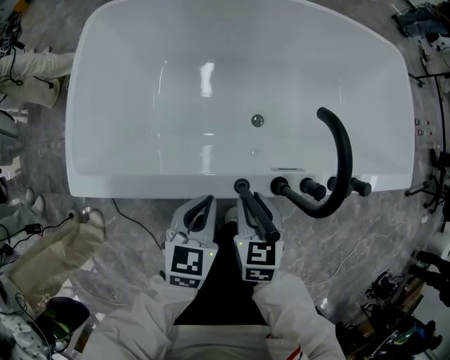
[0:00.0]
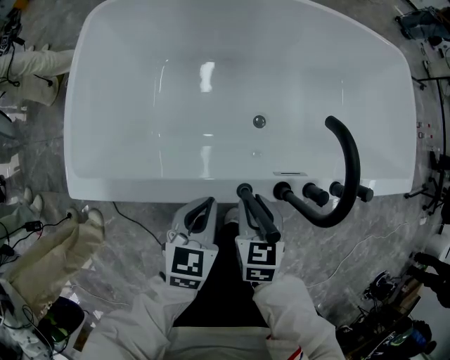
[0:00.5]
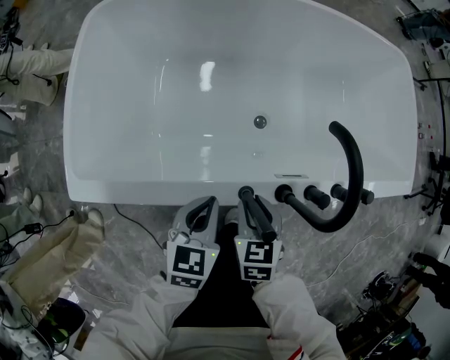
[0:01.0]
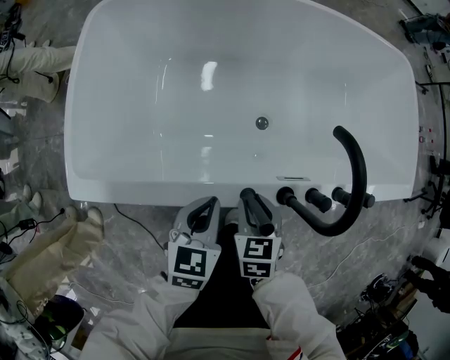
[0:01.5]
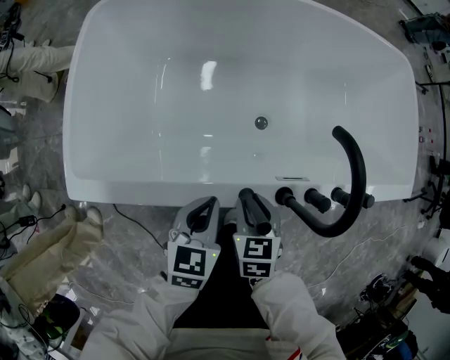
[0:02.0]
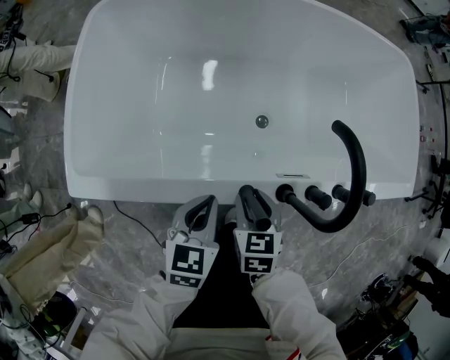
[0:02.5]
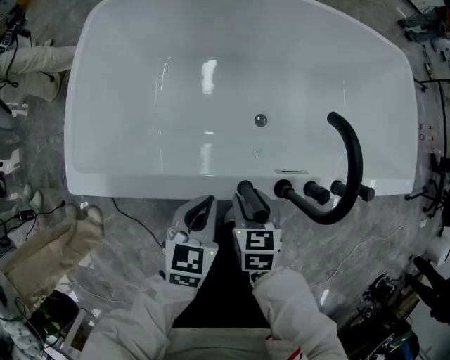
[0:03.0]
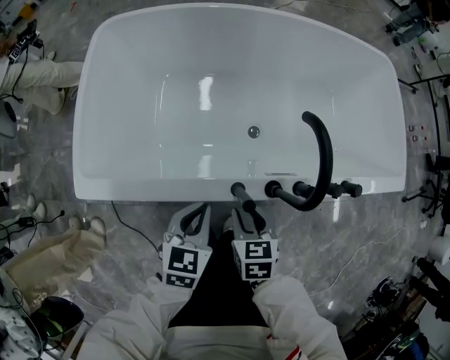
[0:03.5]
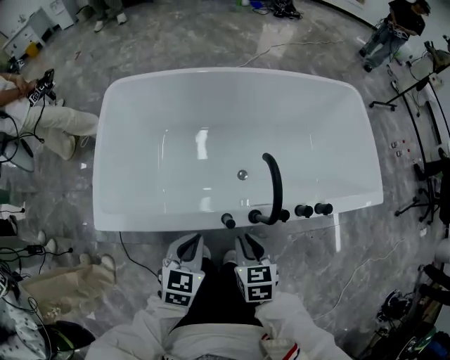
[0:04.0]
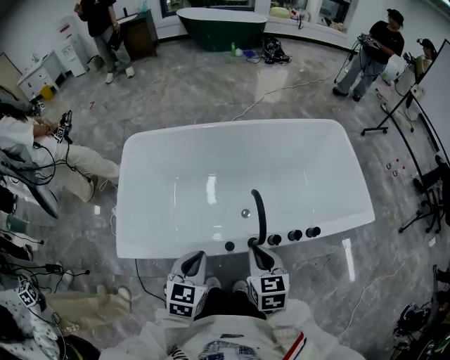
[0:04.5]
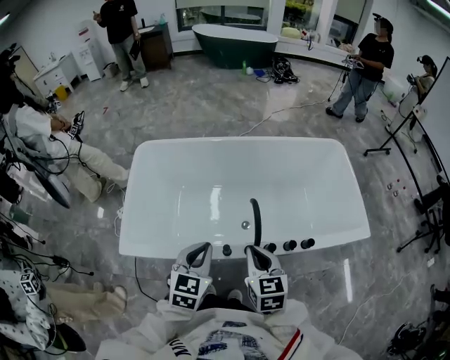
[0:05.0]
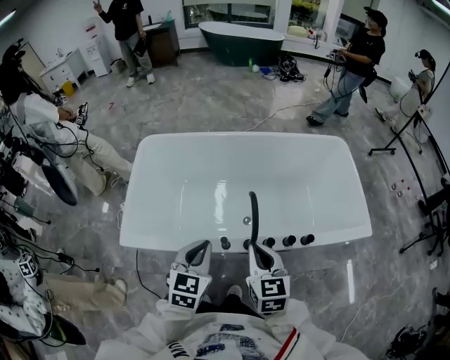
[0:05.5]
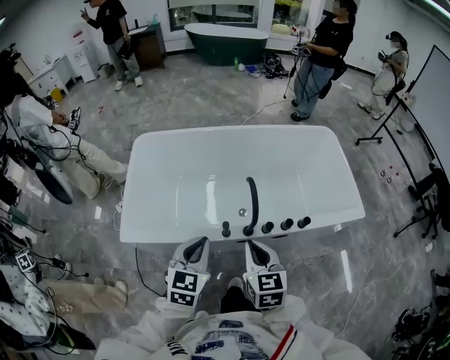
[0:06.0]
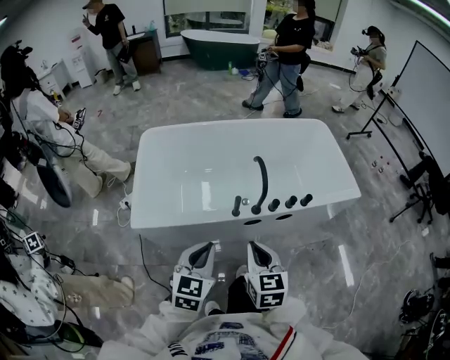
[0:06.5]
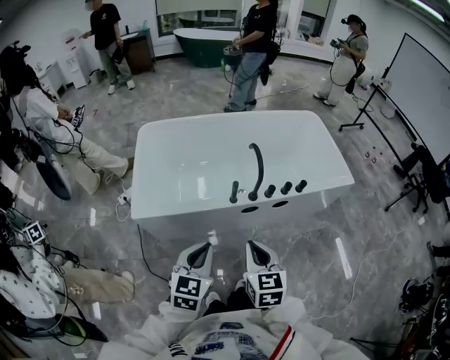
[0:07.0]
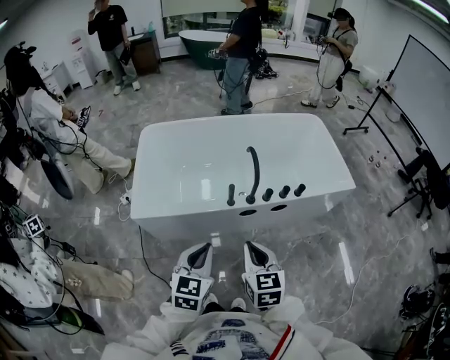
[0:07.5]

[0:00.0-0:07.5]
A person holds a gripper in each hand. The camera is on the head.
0:00.0 to 0:02.0: The grippers make only small movements.
0:02.0 to 0:04.0: Both grippers travel together upward, some 10 cm.
0:04.0 to 0:05.5: The two grippers go about 20 cm upward. The right gripper turns by about 20 degrees.
0:05.5 to 0:07.5: Both grippers move backward, approximately 25 cm.

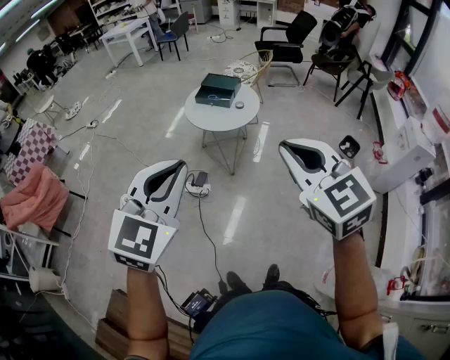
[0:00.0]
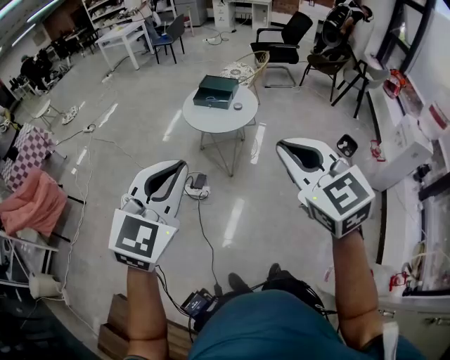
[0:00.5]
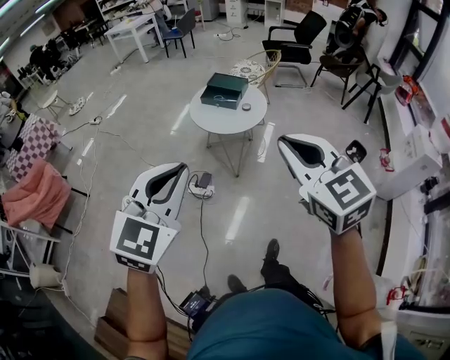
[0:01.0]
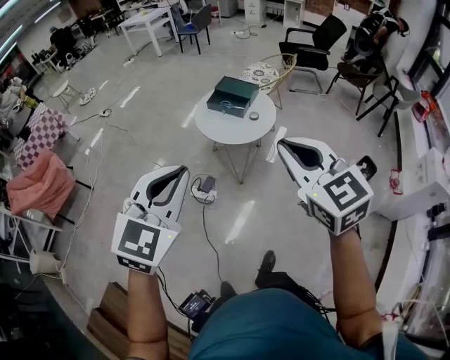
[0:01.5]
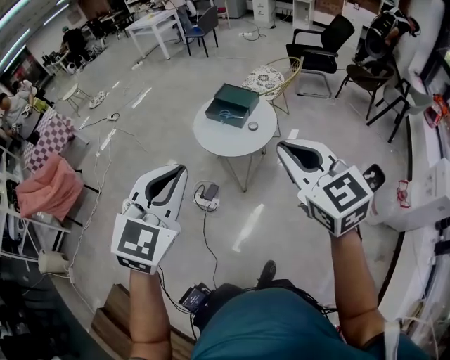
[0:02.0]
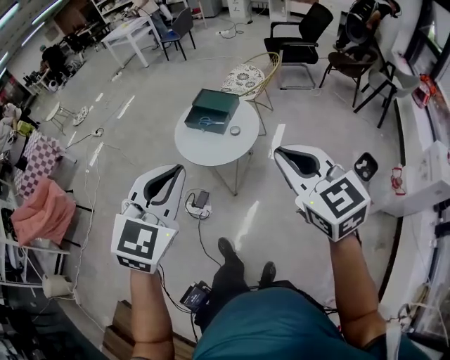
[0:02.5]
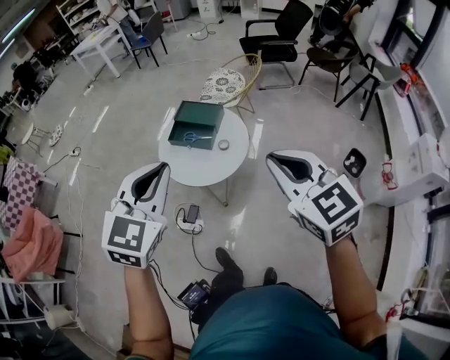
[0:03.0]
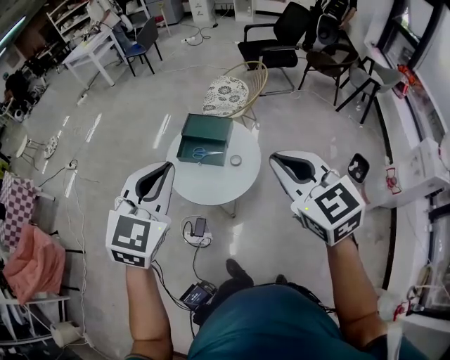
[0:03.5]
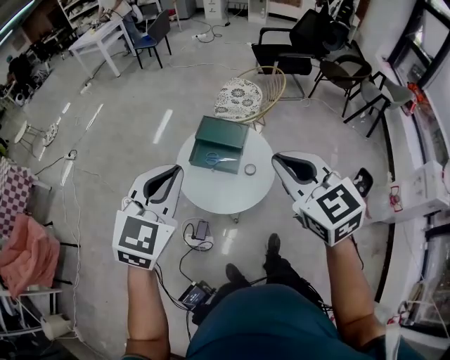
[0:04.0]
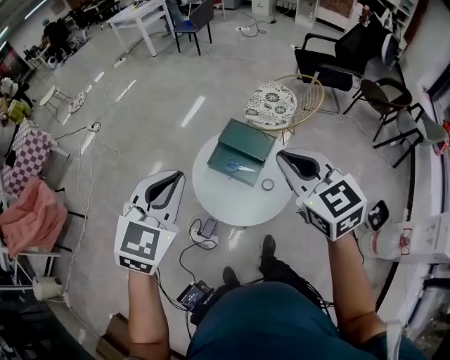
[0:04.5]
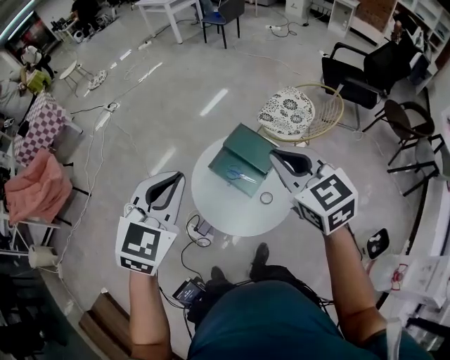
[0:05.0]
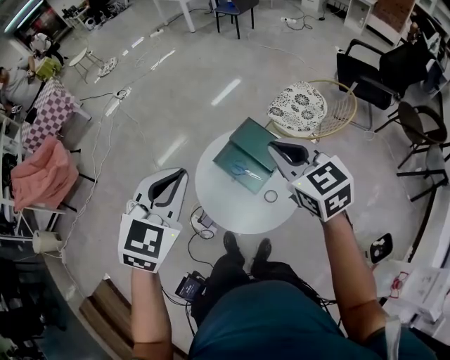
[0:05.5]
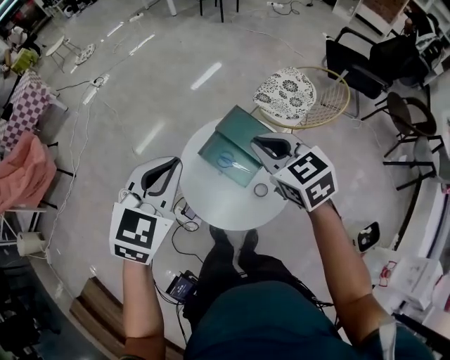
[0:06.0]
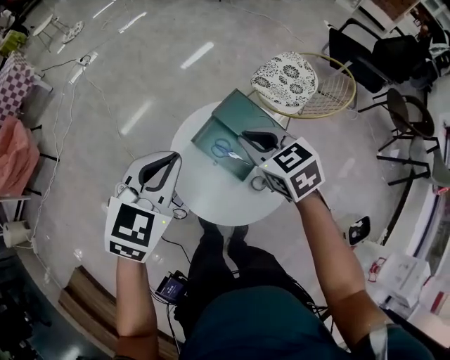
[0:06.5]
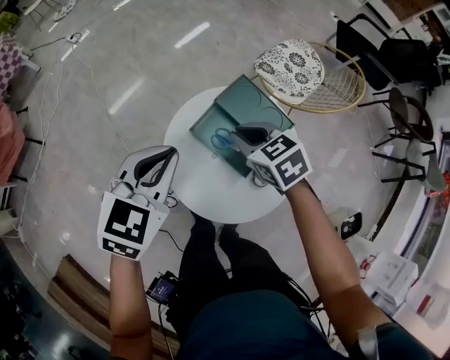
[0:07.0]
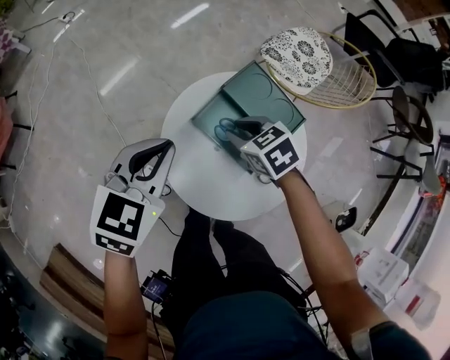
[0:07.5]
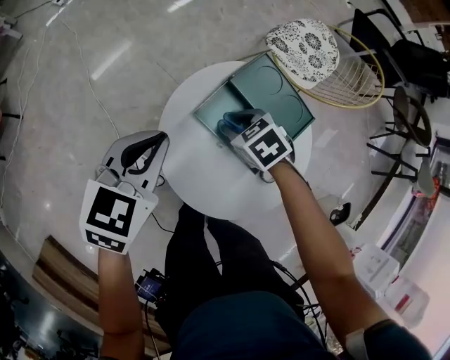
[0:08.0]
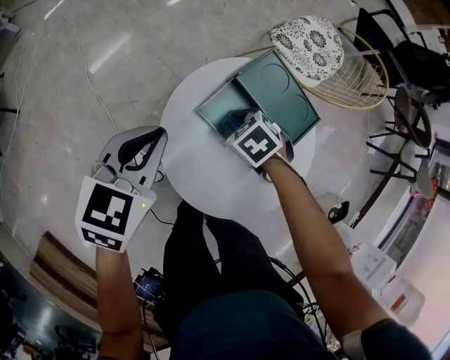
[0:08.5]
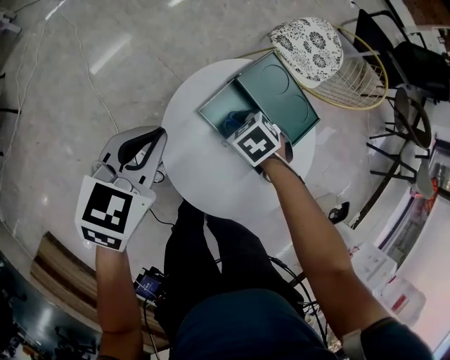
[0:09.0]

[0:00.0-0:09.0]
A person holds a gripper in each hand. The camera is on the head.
0:00.0 to 0:02.0: The two grippers go approximately 30 cm forward and to the right.
0:02.0 to 0:04.5: Both grippers are carried forward, approximately 50 cm.
0:04.5 to 0:07.0: Both grippers move downward and forward, approximately 40 cm. The left gripper swivels about 20 degrees. Meanwhile the right gripper swivels roughly 40 degrees.
0:07.0 to 0:09.0: The left gripper heads downward, covering approximately 15 cm. Meanwhile the right gripper is displaced downward by roughly 25 cm, and turns by some 30 degrees.

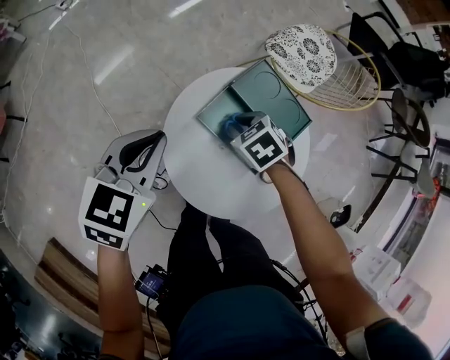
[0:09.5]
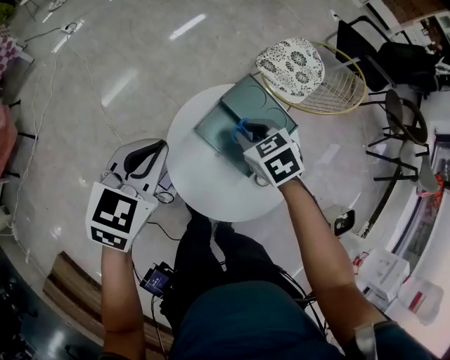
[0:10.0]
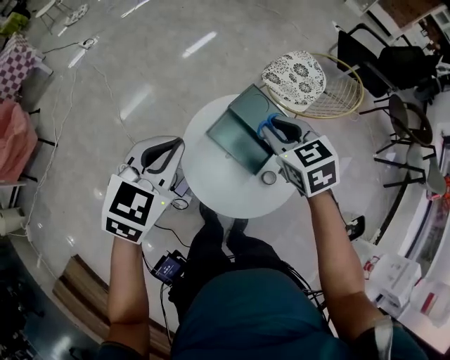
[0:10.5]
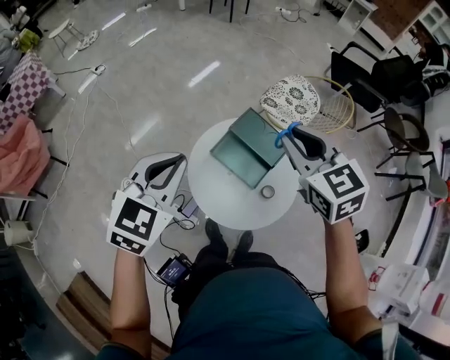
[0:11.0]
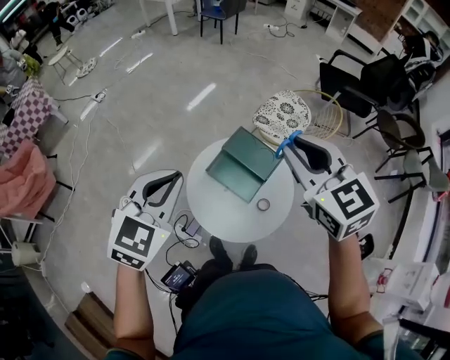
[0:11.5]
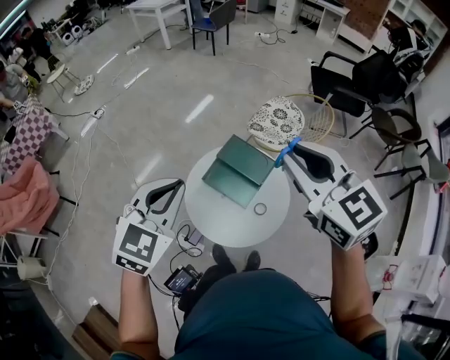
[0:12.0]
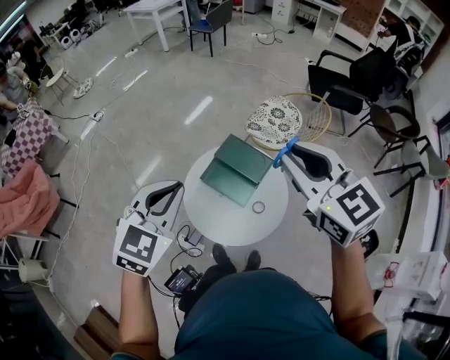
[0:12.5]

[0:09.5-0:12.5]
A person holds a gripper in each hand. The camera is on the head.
0:09.5 to 0:11.0: The left gripper is displaced upward and backward by roughly 30 cm. Meanwhile the right gripper is displaced upward by roughly 40 cm, and tips its fingers upward by some 40 degrees.
0:11.0 to 0:12.5: The right gripper shifts roughly 15 cm upward, backward and to the right, while the left gripper moves to the right, upward and backward, about 10 cm.

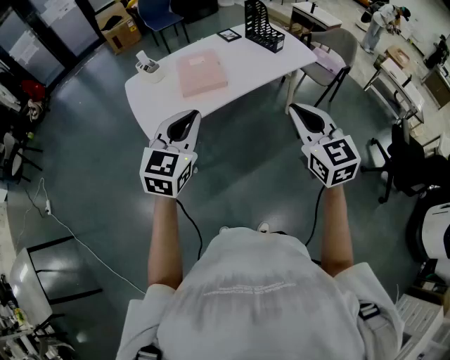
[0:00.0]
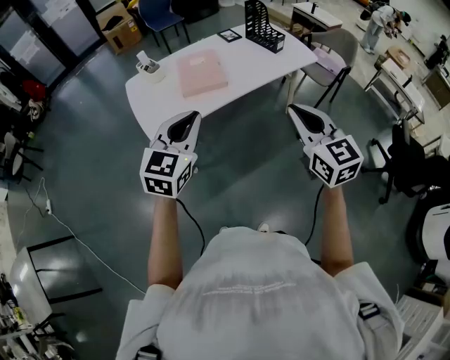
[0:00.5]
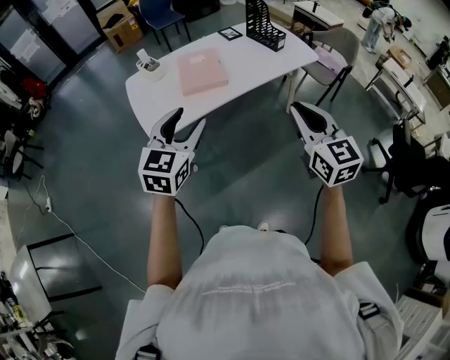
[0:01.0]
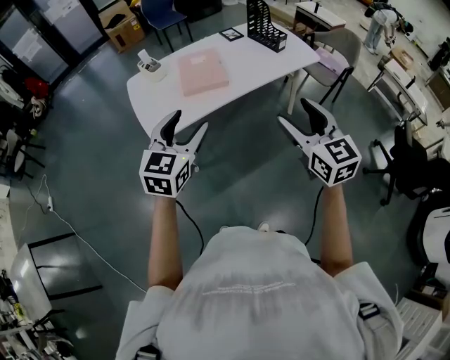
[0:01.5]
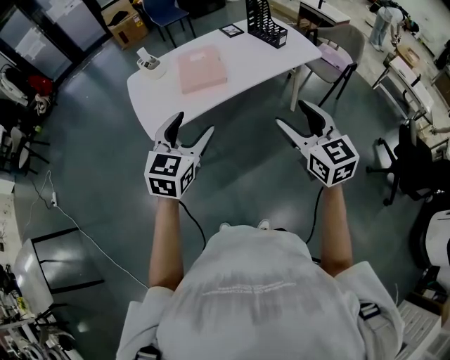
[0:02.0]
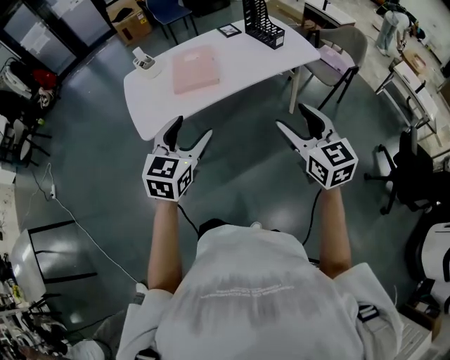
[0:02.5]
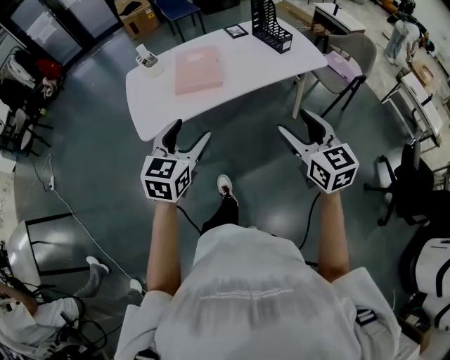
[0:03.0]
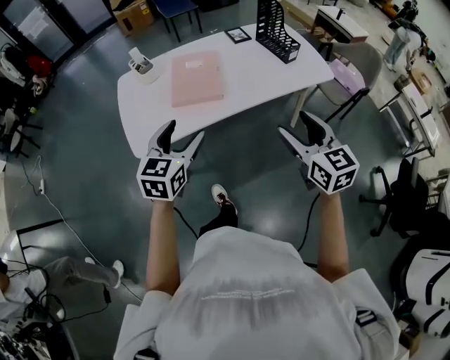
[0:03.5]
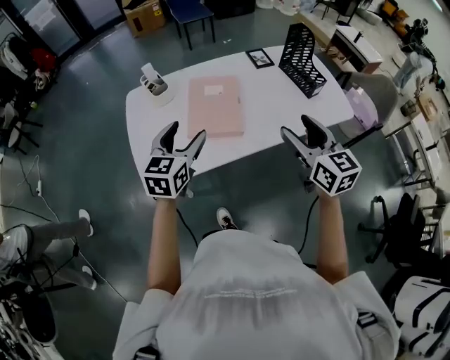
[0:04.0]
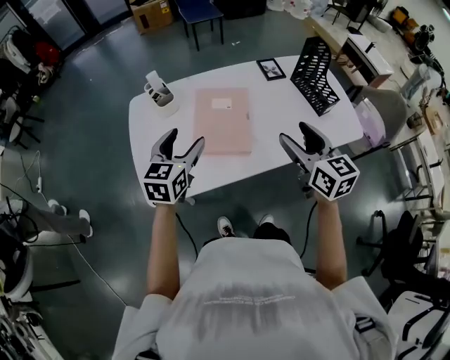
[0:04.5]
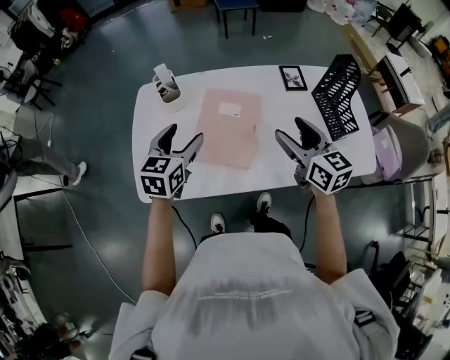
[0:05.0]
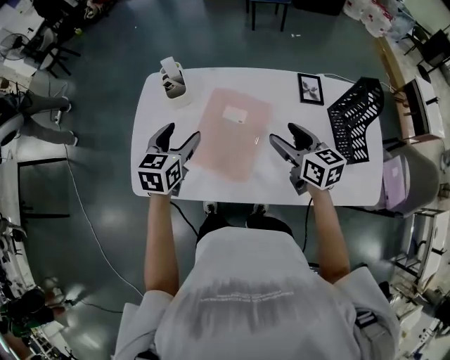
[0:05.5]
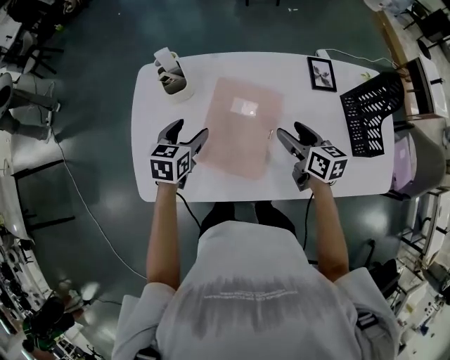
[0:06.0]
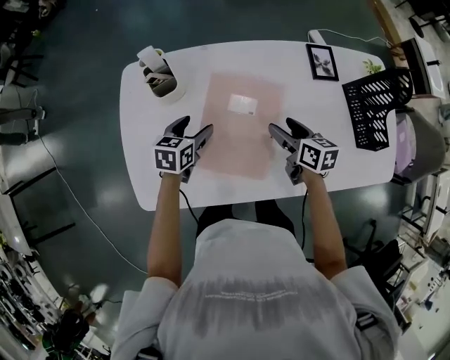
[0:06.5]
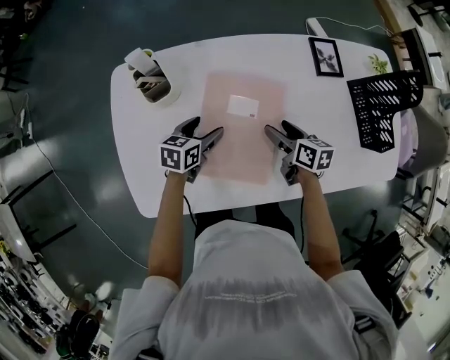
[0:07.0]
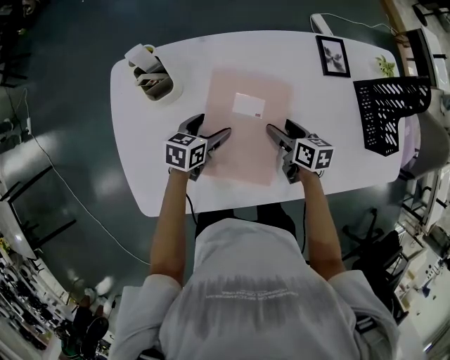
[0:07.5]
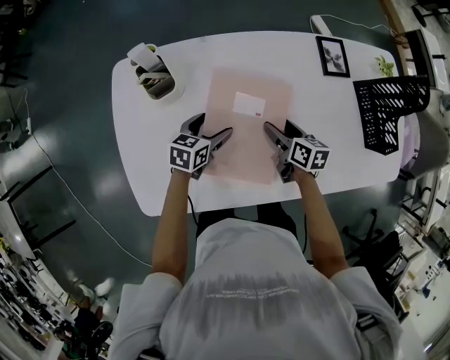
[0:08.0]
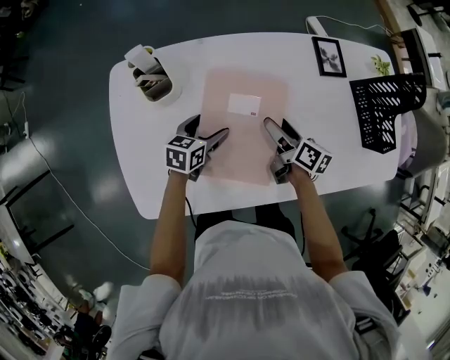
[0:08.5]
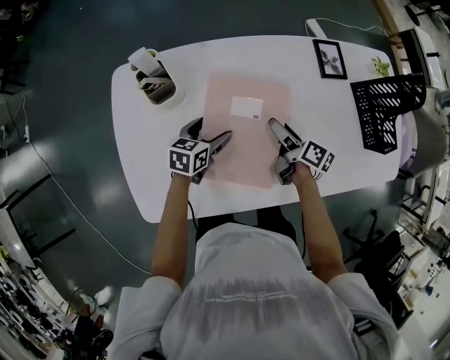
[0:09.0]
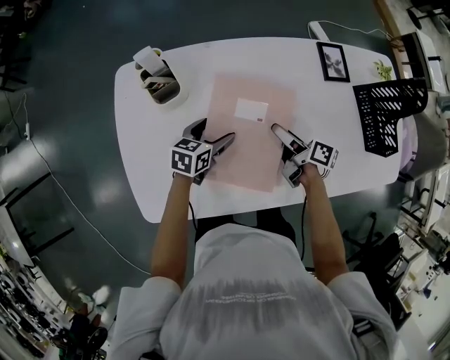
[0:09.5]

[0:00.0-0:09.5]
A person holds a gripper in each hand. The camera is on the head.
0:00.0 to 0:02.0: The right gripper opens its fingers; the left gripper opens up.
0:02.0 to 0:04.0: The grippers both shift forward by approximately 30 cm.
0:04.0 to 0:05.5: The left gripper ends up about 20 cm from where it was, and rotates about 30 degrees. The right gripper moves about 30 cm, and rotates some 30 degrees.
0:05.5 to 0:07.5: Both grippers travel together downward, roughly 25 cm. The left gripper changes its angle by approximately 40 degrees. Meanwhile the right gripper changes its angle by about 30 degrees.
0:07.5 to 0:09.5: The right gripper turns by some 30 degrees.
